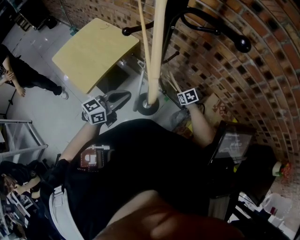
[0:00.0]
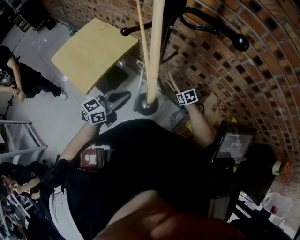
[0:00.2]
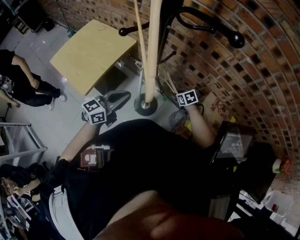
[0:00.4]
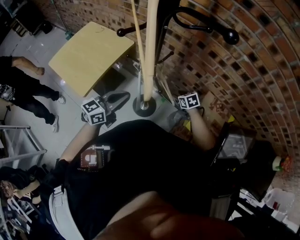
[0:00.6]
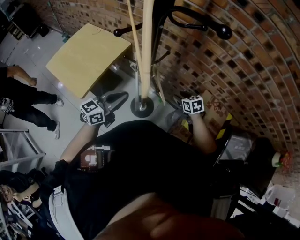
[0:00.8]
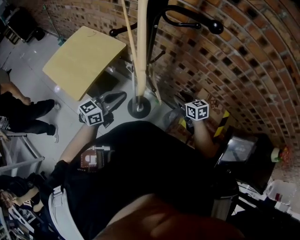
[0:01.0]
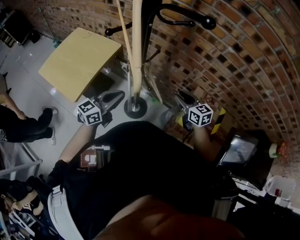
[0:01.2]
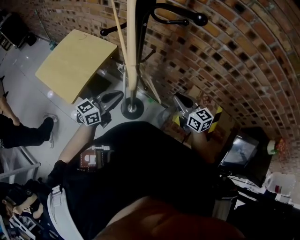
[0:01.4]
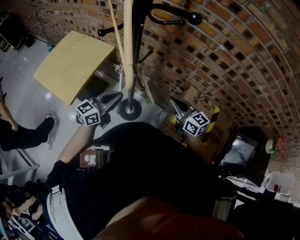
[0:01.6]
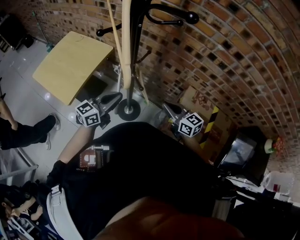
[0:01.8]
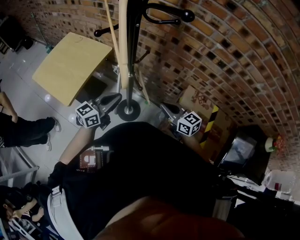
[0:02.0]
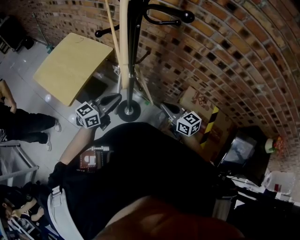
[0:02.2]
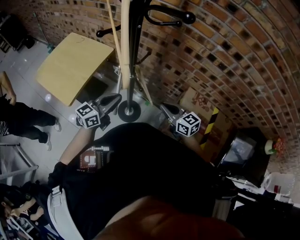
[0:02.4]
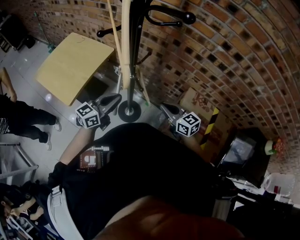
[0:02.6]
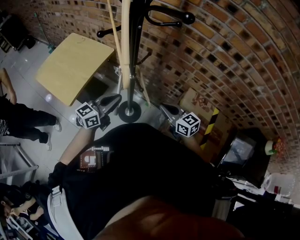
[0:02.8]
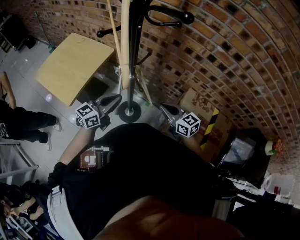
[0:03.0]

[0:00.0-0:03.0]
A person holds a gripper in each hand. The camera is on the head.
0:00.0 to 0:01.6: The right gripper heads upward and backward, covering roughly 30 cm, tilts its fingers roughly 50 degrees upward, and opens and closes again.
0:01.6 to 0:03.0: The right gripper shifts by roughly 5 cm.

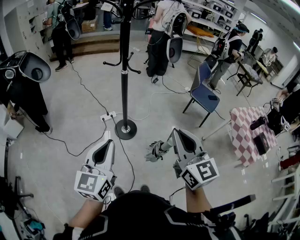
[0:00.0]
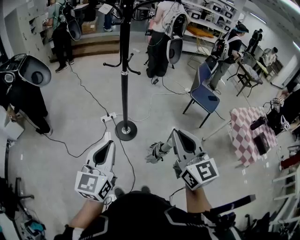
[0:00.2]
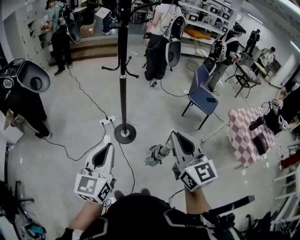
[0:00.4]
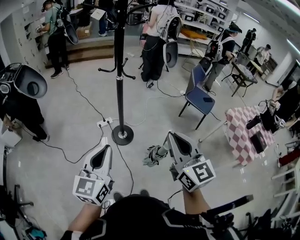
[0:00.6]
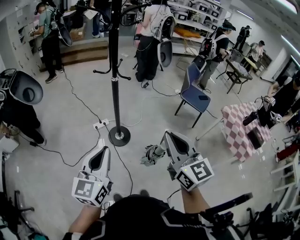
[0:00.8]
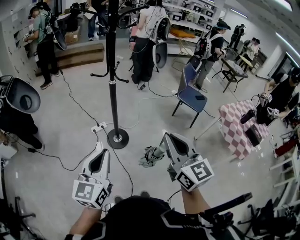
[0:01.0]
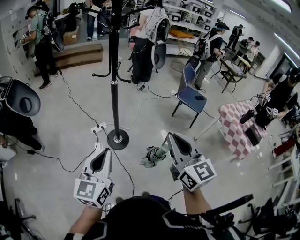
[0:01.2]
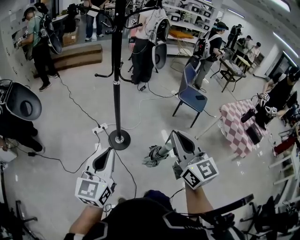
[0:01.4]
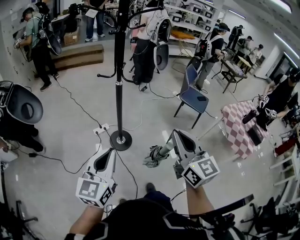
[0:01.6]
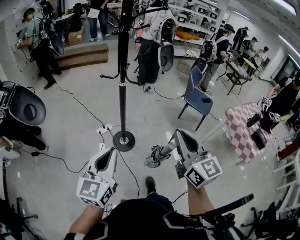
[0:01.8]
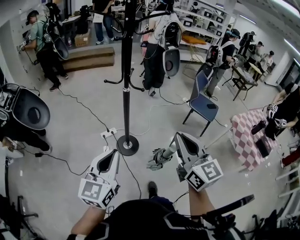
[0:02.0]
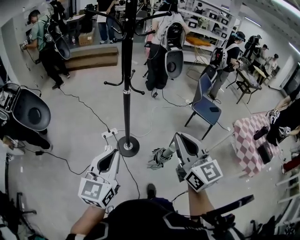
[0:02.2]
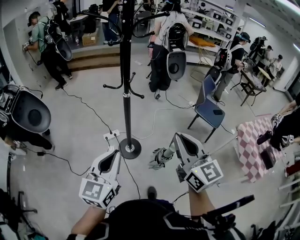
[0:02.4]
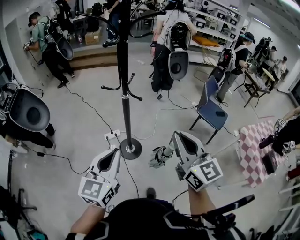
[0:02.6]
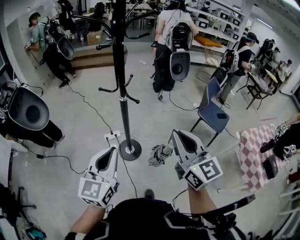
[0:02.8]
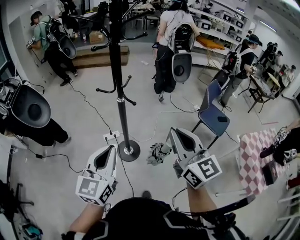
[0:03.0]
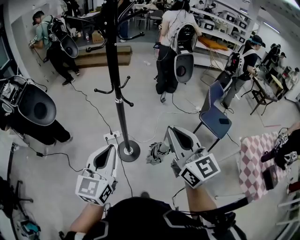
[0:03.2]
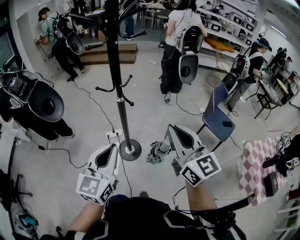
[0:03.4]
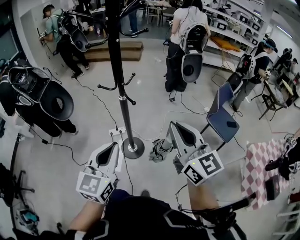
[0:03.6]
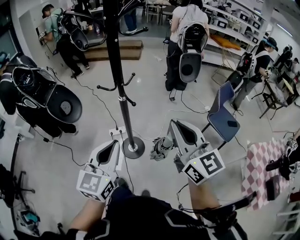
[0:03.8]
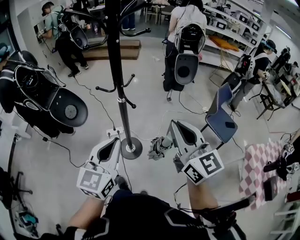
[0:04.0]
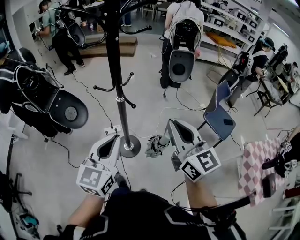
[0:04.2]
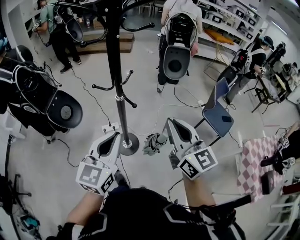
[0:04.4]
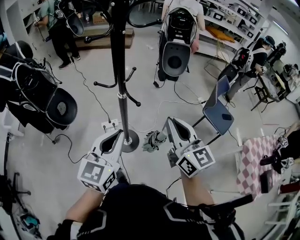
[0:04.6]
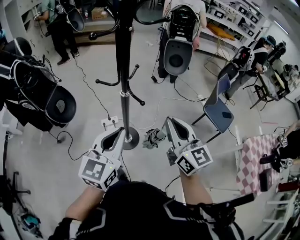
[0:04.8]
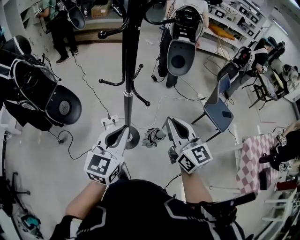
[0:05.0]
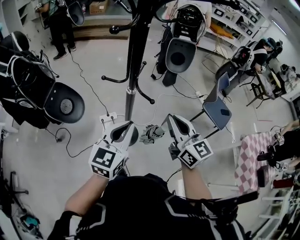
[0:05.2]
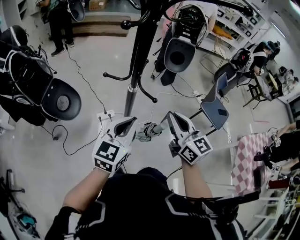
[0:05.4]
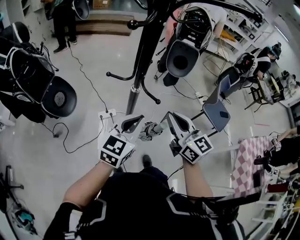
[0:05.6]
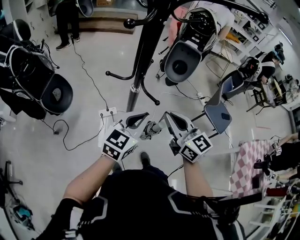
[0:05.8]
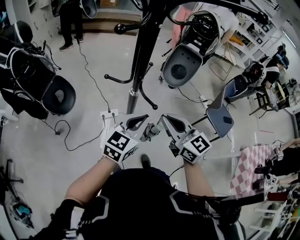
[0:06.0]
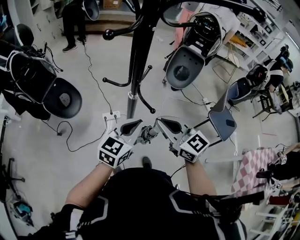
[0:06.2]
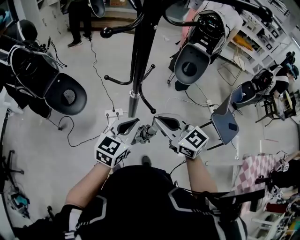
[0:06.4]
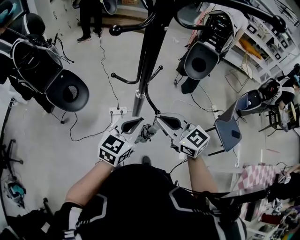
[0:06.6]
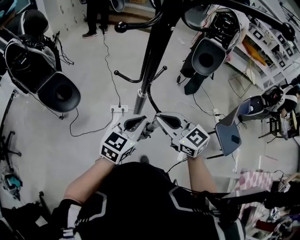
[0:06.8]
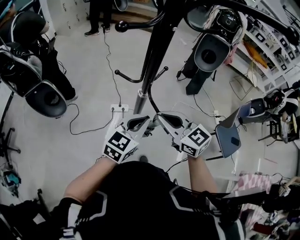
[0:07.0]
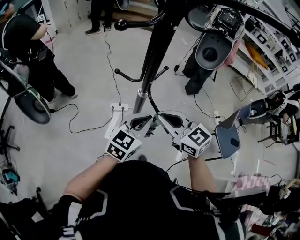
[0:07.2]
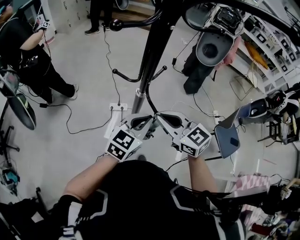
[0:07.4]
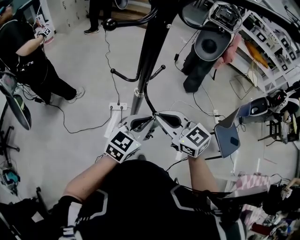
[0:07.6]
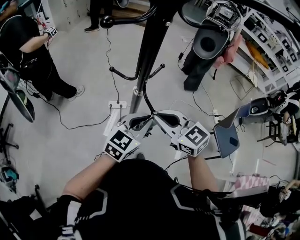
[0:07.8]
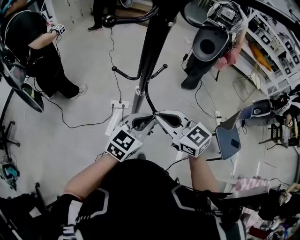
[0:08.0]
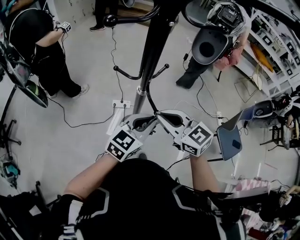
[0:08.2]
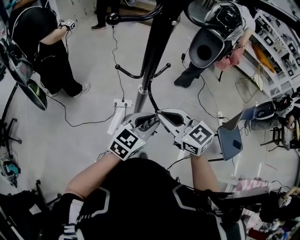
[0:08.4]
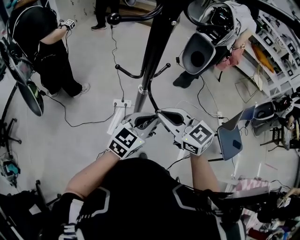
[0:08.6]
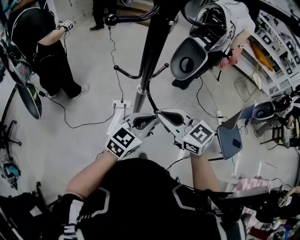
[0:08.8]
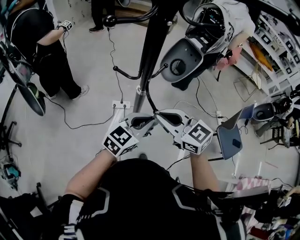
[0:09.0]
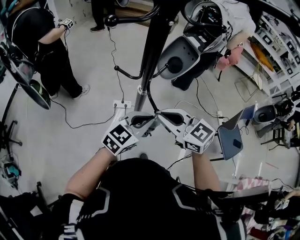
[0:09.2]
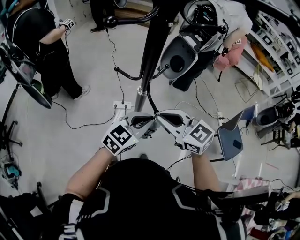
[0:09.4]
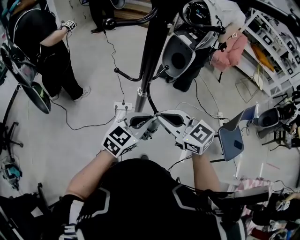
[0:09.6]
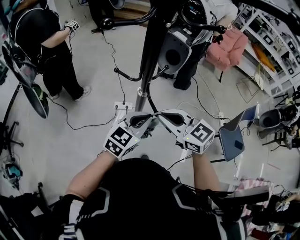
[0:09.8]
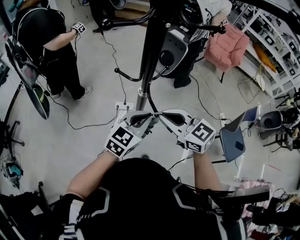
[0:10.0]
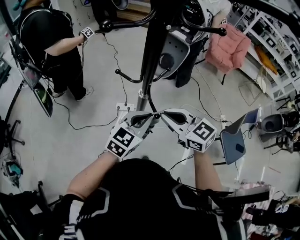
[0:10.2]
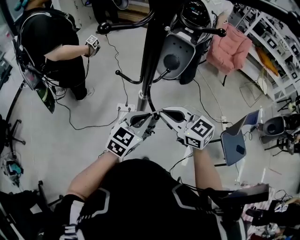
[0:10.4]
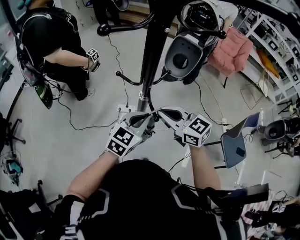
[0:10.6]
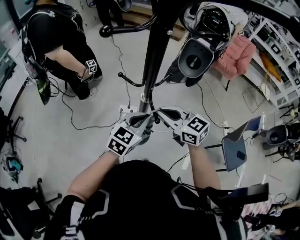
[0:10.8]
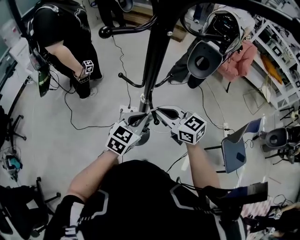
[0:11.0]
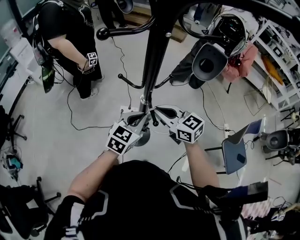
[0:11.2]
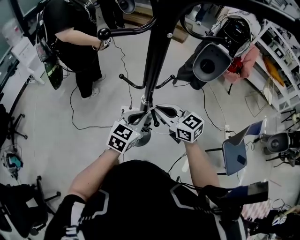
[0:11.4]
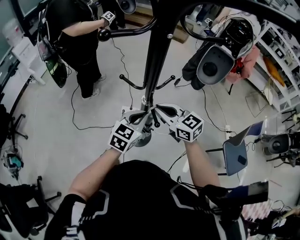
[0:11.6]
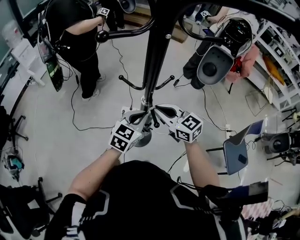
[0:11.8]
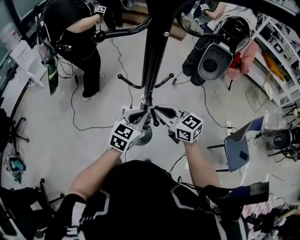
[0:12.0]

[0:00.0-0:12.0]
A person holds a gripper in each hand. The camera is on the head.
0:00.0 to 0:01.6: The left gripper changes place by approximately 5 cm.
0:01.6 to 0:03.0: Both grippers travel together forward and to the right, about 20 cm.
0:03.0 to 0:04.4: The two grippers go roughly 10 cm forward.
0:04.4 to 0:06.0: The right gripper goes about 20 cm to the left, forward and downward. The left gripper goes roughly 15 cm forward and downward.
0:06.0 to 0:07.6: The right gripper shifts by approximately 5 cm, and swivels about 30 degrees. The left gripper moves some 5 cm.
0:07.6 to 0:10.4: The grippers stay close to where they were, moving slightly.
0:10.4 to 0:12.0: Both grippers travel together forward, approximately 5 cm.

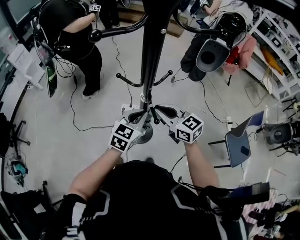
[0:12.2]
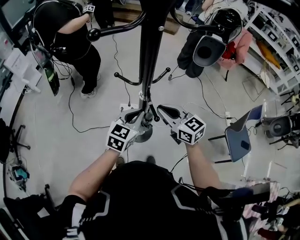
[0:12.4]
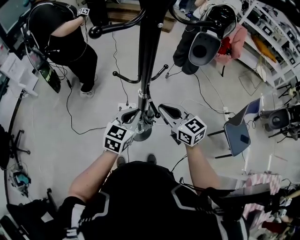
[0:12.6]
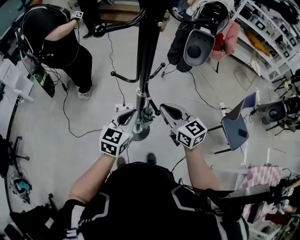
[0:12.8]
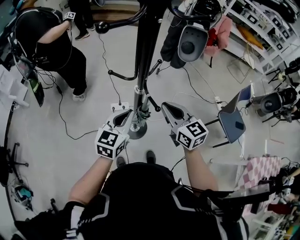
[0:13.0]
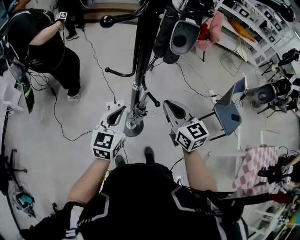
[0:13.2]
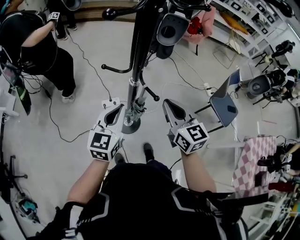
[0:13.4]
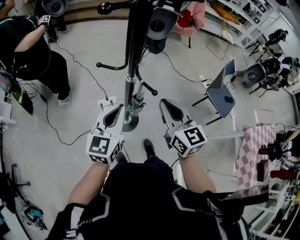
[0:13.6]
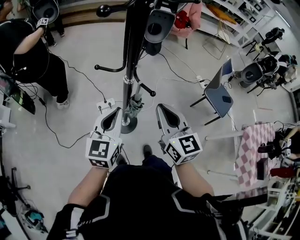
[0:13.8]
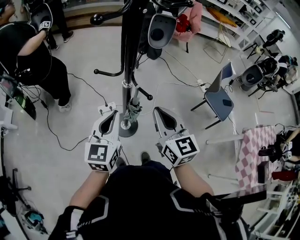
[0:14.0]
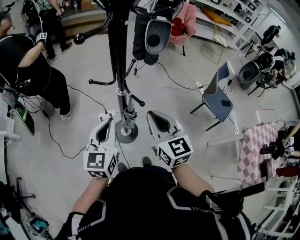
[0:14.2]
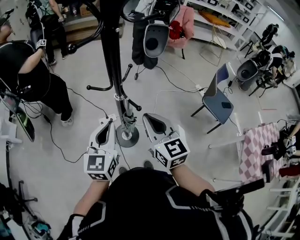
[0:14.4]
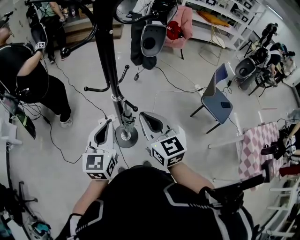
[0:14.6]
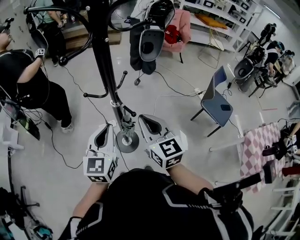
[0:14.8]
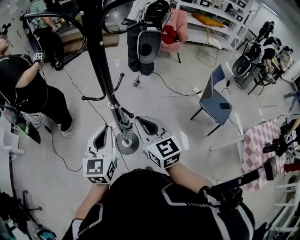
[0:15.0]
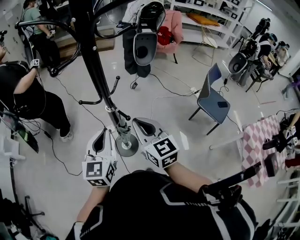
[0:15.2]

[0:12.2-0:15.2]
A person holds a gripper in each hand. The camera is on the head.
0:12.2 to 0:13.8: The right gripper ends up some 15 cm from where it was, and changes its angle by some 50 degrees. The left gripper changes place by roughly 15 cm.
0:13.8 to 0:15.2: The left gripper moves roughly 5 cm.

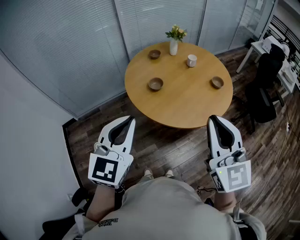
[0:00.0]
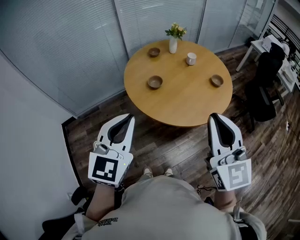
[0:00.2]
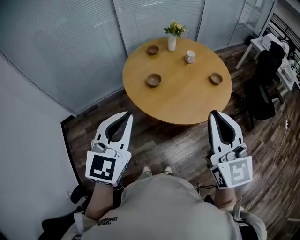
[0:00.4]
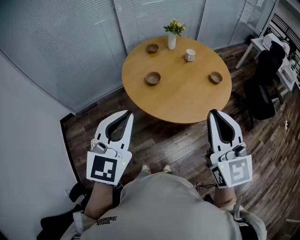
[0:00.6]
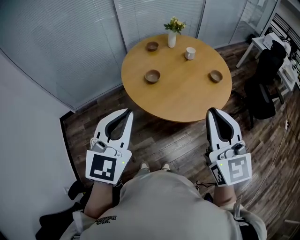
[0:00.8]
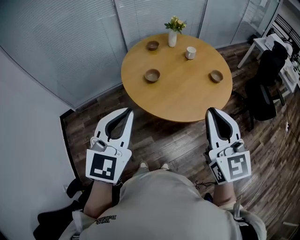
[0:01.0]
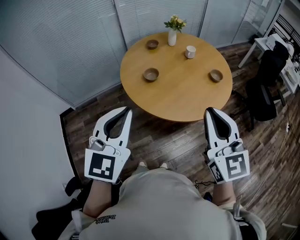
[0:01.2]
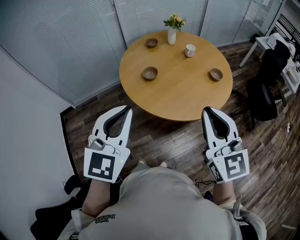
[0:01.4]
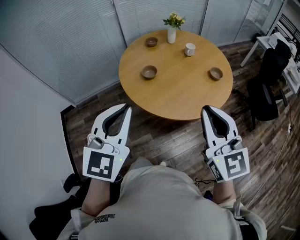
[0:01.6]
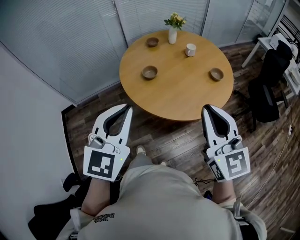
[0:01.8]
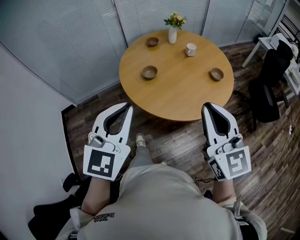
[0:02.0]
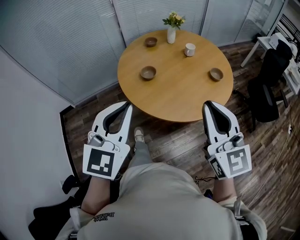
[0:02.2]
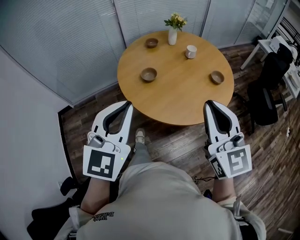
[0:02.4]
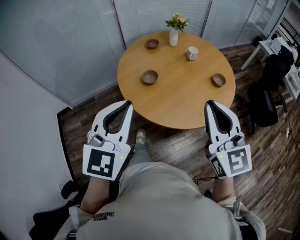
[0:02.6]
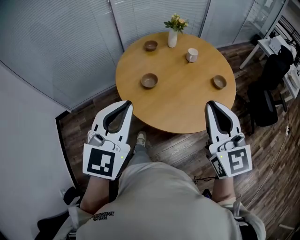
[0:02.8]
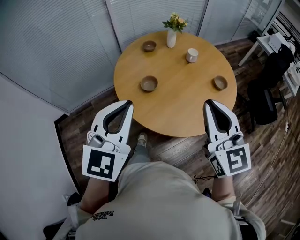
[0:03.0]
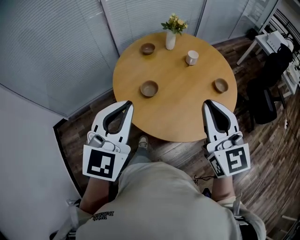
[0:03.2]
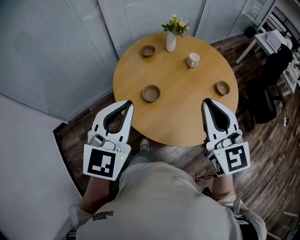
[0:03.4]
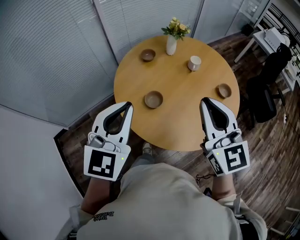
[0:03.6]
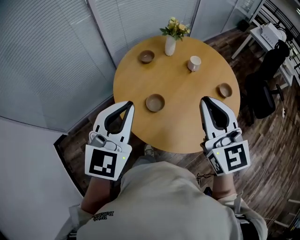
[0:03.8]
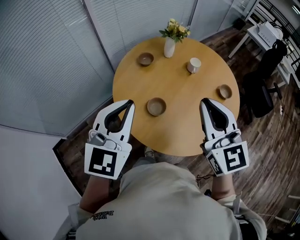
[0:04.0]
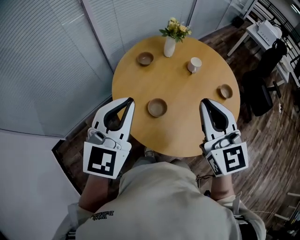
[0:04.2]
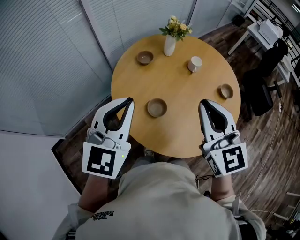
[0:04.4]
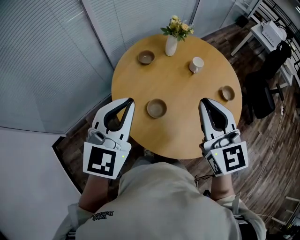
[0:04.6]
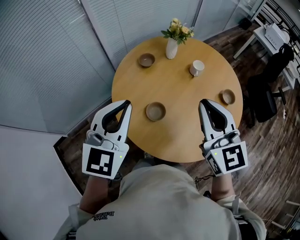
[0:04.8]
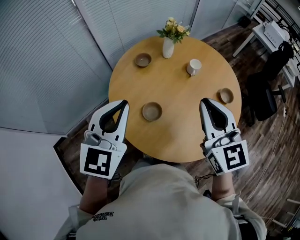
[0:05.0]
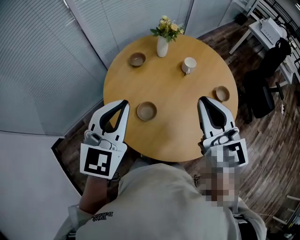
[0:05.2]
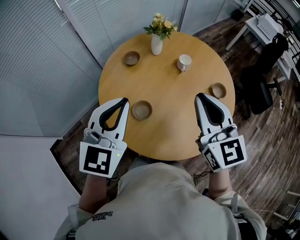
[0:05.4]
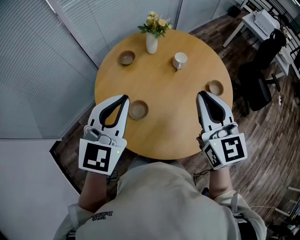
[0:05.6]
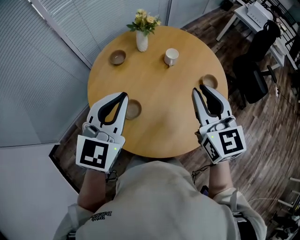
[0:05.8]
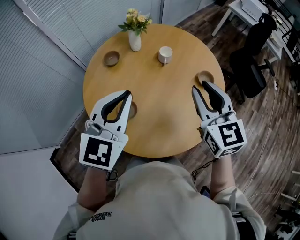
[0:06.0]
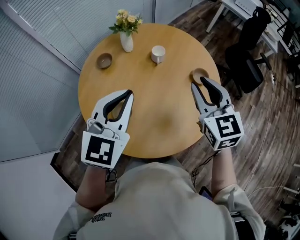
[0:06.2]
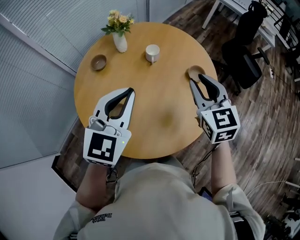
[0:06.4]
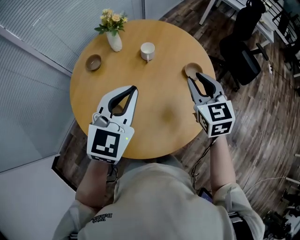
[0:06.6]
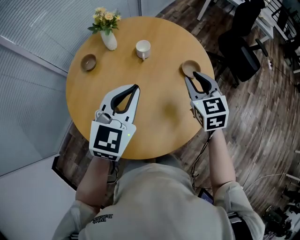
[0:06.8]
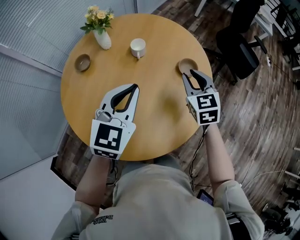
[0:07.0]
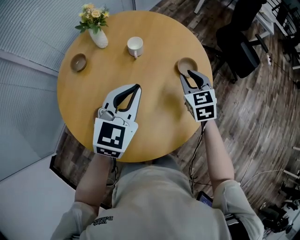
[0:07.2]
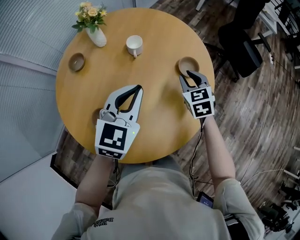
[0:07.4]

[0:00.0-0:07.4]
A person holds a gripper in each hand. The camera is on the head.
0:00.0 to 0:01.4: The right gripper shifts by approximately 5 cm. Meanwhile the left gripper heads to the right, covering about 5 cm.
0:01.4 to 0:03.0: The two grippers go about 15 cm forward.
0:03.0 to 0:04.4: Both grippers move forward and to the left, about 25 cm.
0:04.4 to 0:06.0: The grippers both shift to the right and forward by approximately 20 cm.
0:06.0 to 0:07.4: The right gripper shifts approximately 30 cm downward, forward and to the right, and swivels some 30 degrees. Meanwhile the left gripper heads to the right, downward and forward, covering roughly 25 cm.
